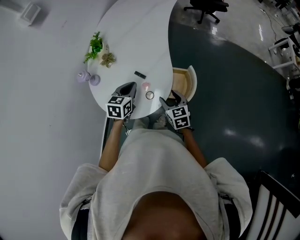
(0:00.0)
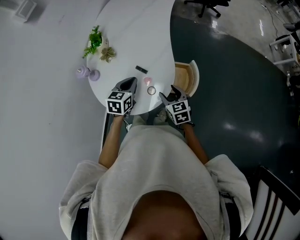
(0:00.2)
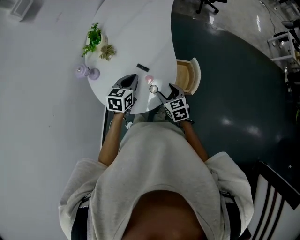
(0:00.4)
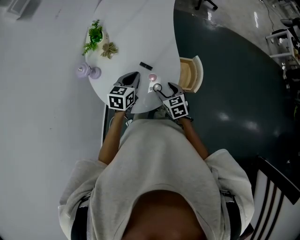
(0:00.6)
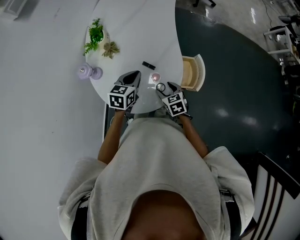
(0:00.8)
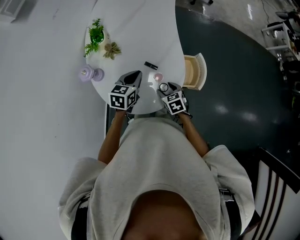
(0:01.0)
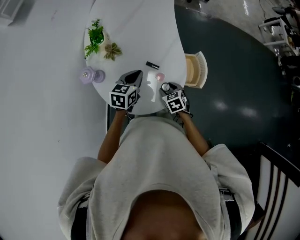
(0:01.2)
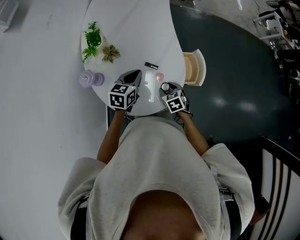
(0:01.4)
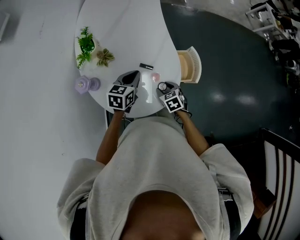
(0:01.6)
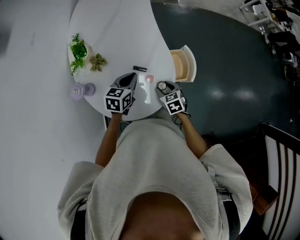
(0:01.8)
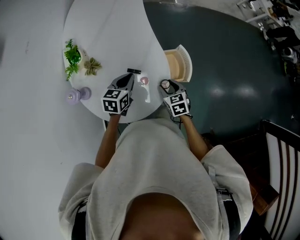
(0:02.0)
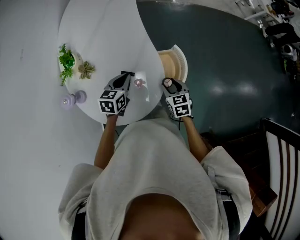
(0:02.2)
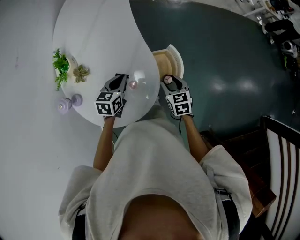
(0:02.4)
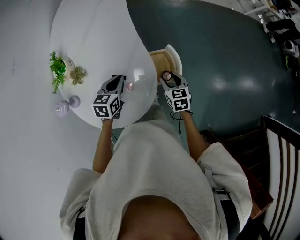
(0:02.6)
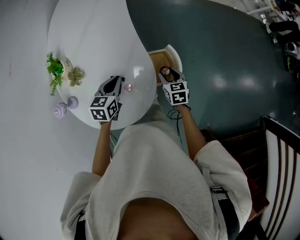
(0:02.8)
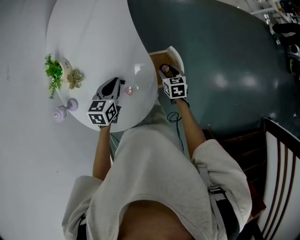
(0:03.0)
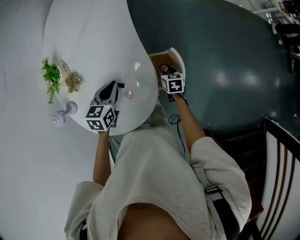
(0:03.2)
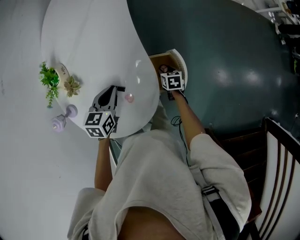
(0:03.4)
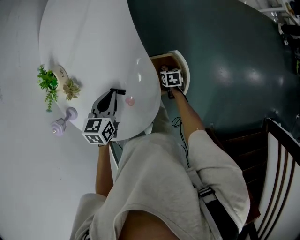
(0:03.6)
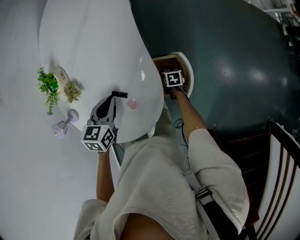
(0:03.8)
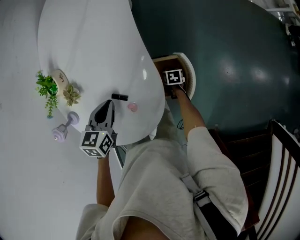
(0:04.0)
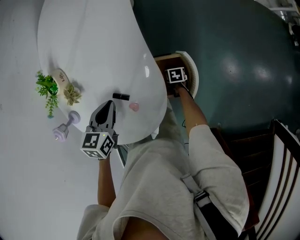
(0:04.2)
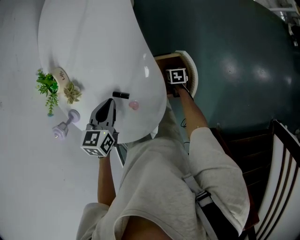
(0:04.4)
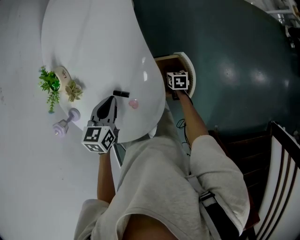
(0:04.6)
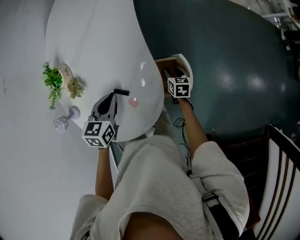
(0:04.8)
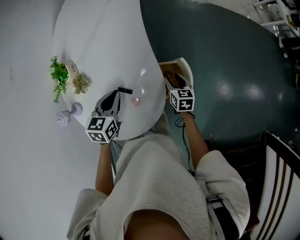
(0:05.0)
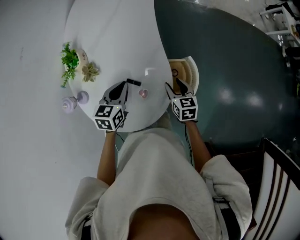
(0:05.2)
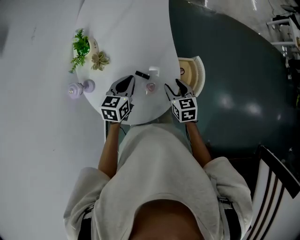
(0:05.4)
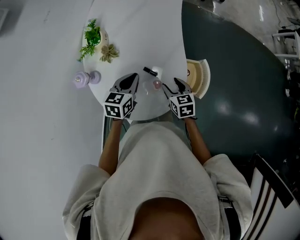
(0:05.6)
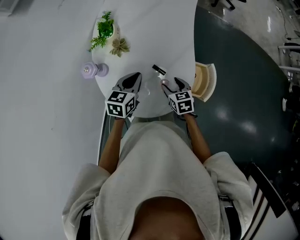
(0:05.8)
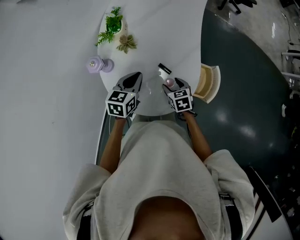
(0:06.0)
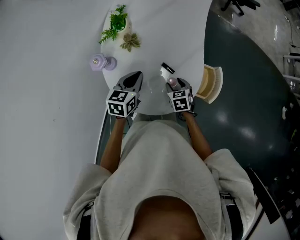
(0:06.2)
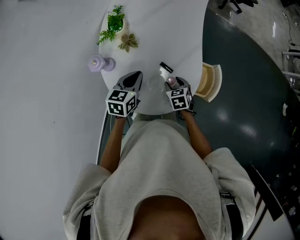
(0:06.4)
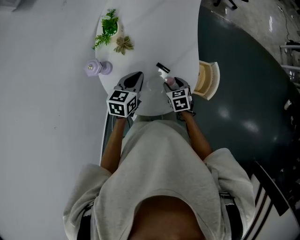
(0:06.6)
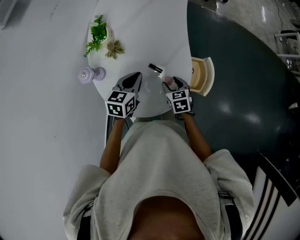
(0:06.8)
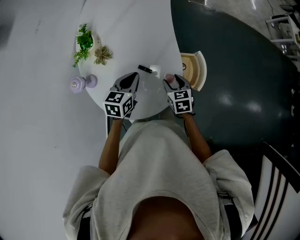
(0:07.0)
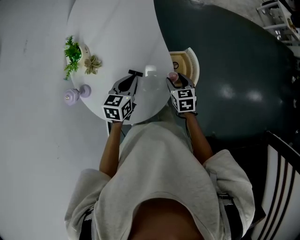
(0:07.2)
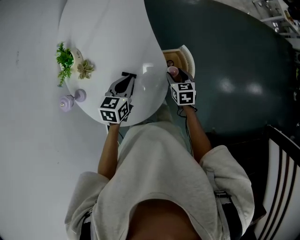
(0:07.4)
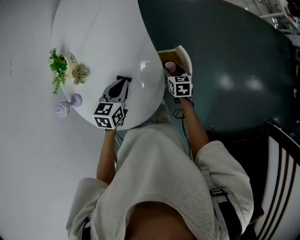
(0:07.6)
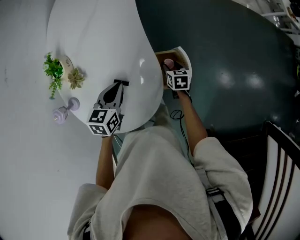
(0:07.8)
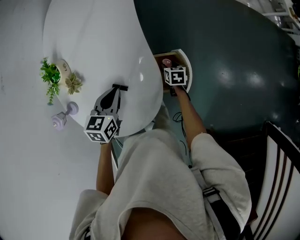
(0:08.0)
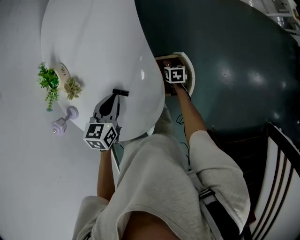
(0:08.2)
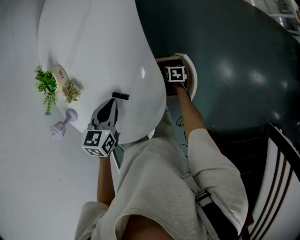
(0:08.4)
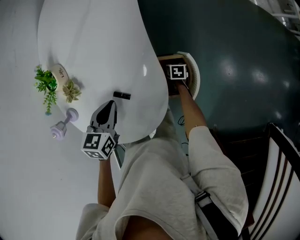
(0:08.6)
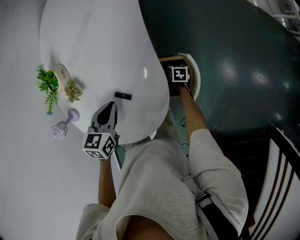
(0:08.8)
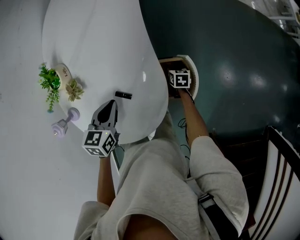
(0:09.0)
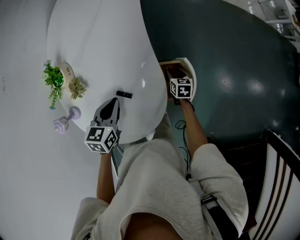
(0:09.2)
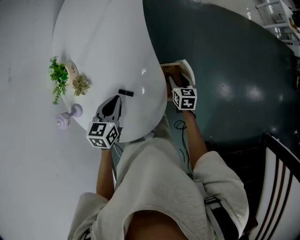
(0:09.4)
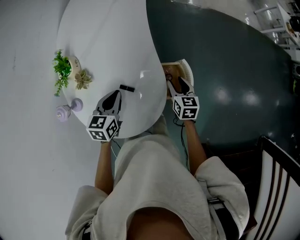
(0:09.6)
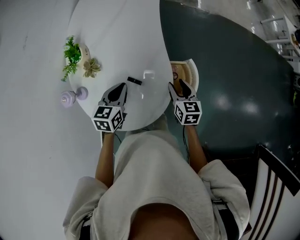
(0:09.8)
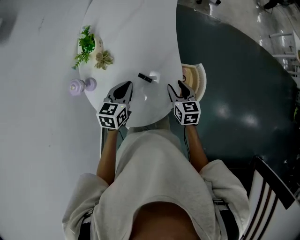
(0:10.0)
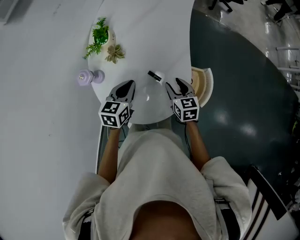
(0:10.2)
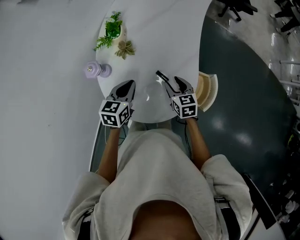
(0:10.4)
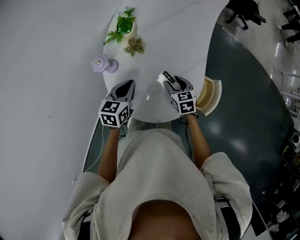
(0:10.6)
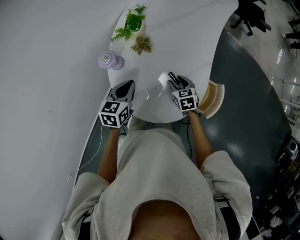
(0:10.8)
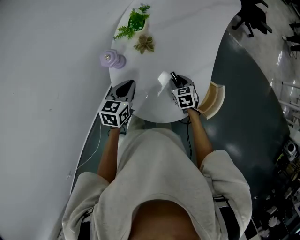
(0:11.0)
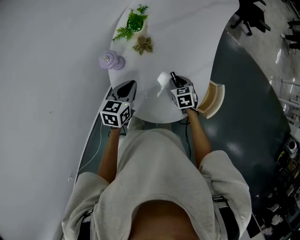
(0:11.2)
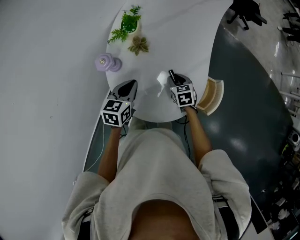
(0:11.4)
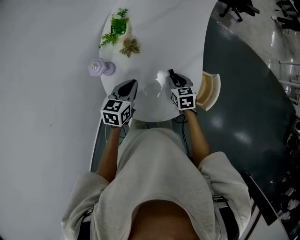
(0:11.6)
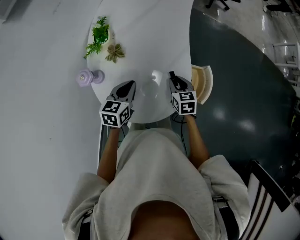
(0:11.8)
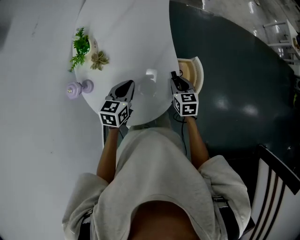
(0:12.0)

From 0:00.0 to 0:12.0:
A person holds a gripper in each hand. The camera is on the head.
From 0:00.0 to 0:01.6: The right gripper shifts approximately 15 cm downward and to the left, and turns by some 30 degrees. The left gripper heads to the left, covering approximately 5 cm, and turns by some 20 degrees.
From 0:01.6 to 0:03.0: The right gripper heads forward and to the right, covering roughly 25 cm, and swivels approximately 20 degrees. The left gripper moves forward and to the right, approximately 10 cm.
From 0:03.0 to 0:04.4: The right gripper travels downward by some 20 cm, and changes its angle by about 20 degrees.
From 0:04.4 to 0:06.0: The right gripper heads upward, to the left and backward, covering about 35 cm, and changes its angle by some 40 degrees. The left gripper shifts roughly 15 cm to the left and backward.
From 0:06.0 to 0:07.6: The left gripper ends up some 15 cm from where it was, while the right gripper moves approximately 20 cm, and turns by roughly 30 degrees.
From 0:07.6 to 0:09.0: The right gripper heads downward and forward, covering some 15 cm.
From 0:09.0 to 0:10.4: The left gripper changes place by some 15 cm; the right gripper moves upward, approximately 25 cm, and swivels approximately 40 degrees.
From 0:10.4 to 0:12.0: The right gripper ends up about 10 cm from where it was, and turns by some 20 degrees; the left gripper moves about 10 cm.

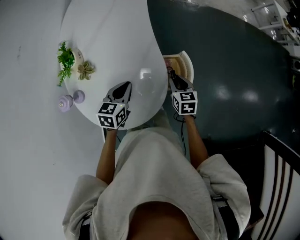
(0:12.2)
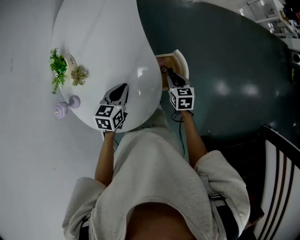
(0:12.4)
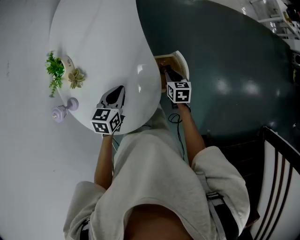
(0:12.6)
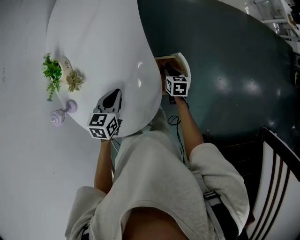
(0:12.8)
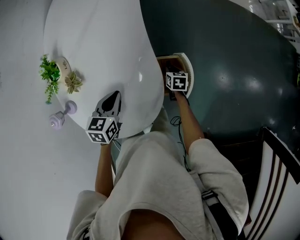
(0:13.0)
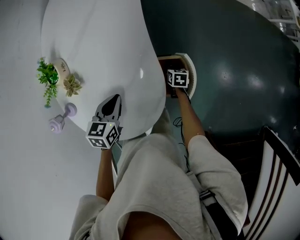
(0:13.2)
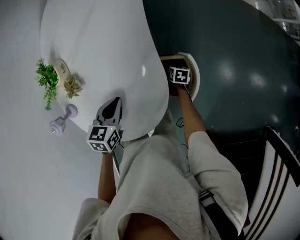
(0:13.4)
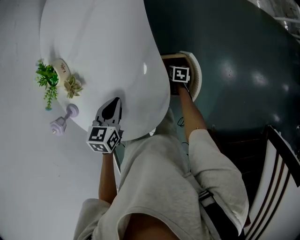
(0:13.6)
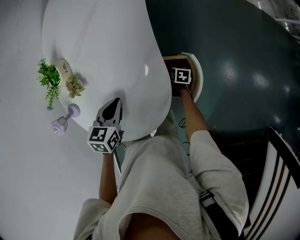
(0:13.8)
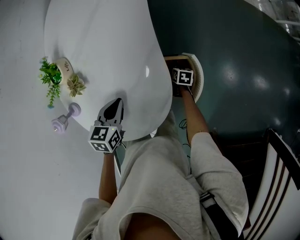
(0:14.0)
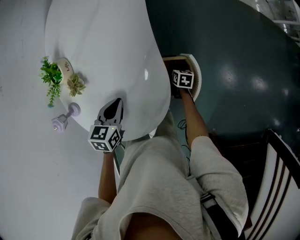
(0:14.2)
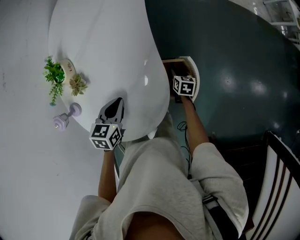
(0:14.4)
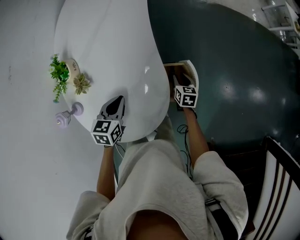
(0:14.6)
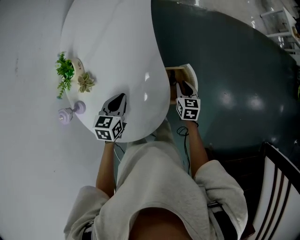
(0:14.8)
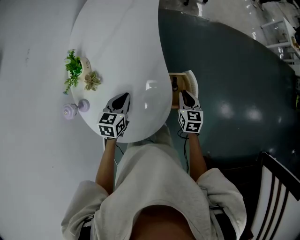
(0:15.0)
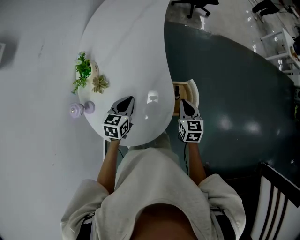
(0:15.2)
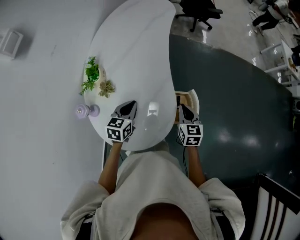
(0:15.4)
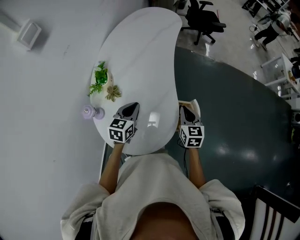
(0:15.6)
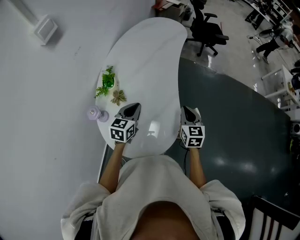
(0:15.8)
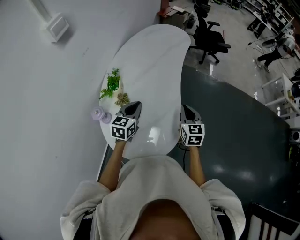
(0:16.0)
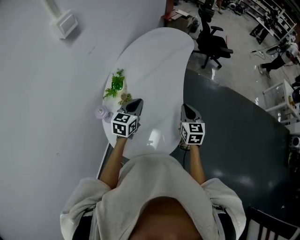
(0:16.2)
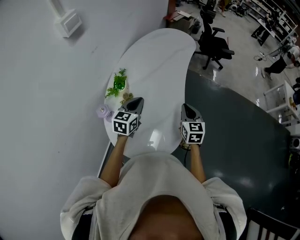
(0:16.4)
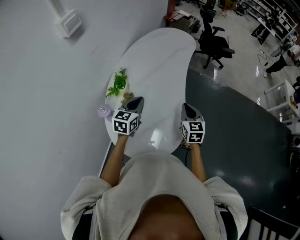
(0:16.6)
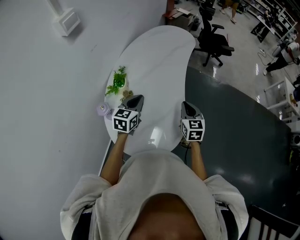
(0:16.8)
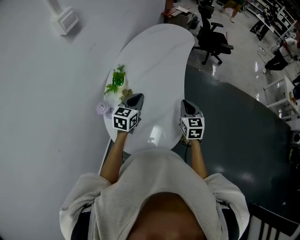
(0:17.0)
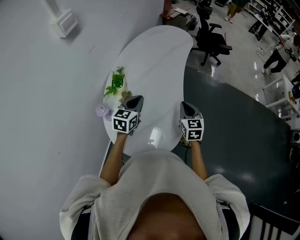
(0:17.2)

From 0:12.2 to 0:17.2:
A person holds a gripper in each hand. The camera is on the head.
From 0:12.2 to 0:13.8: The left gripper changes place by roughly 5 cm, while the right gripper travels downward by some 25 cm, and rotates about 30 degrees.
From 0:13.8 to 0:15.6: The left gripper goes approximately 10 cm upward, and rotates some 20 degrees, while the right gripper heads upward, covering about 40 cm, tilts its fingers roughly 40 degrees upward, and closes.
From 0:15.6 to 0:17.2: The left gripper is displaced upward by about 5 cm; the right gripper shifts roughly 10 cm to the left and upward.

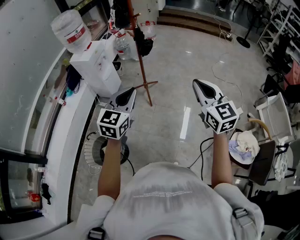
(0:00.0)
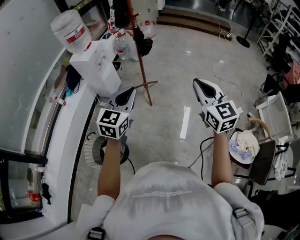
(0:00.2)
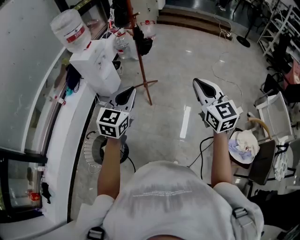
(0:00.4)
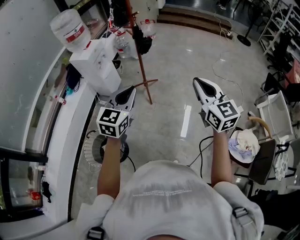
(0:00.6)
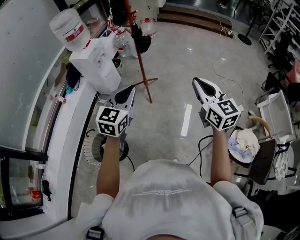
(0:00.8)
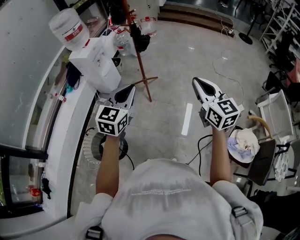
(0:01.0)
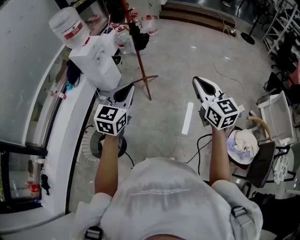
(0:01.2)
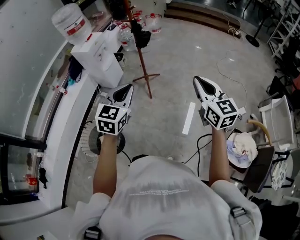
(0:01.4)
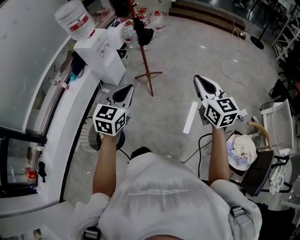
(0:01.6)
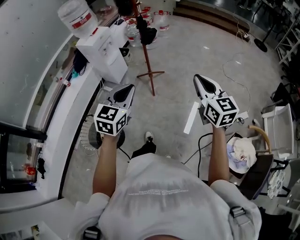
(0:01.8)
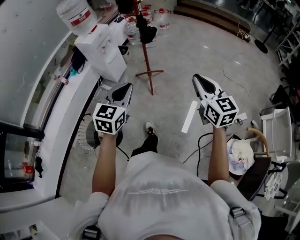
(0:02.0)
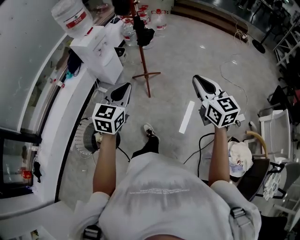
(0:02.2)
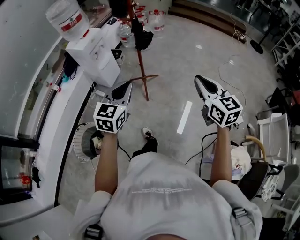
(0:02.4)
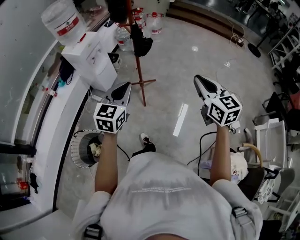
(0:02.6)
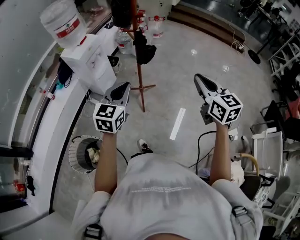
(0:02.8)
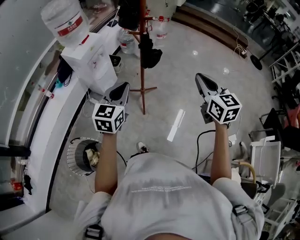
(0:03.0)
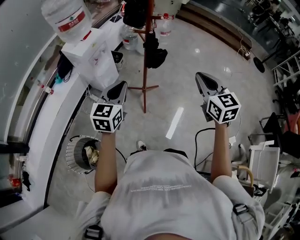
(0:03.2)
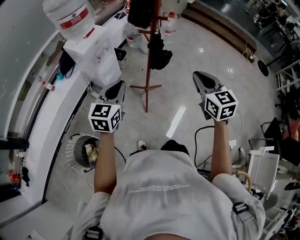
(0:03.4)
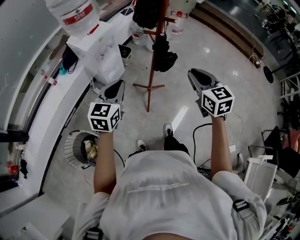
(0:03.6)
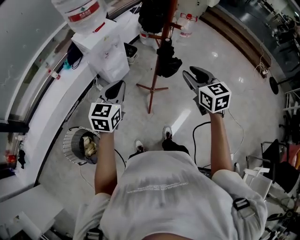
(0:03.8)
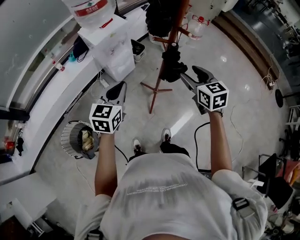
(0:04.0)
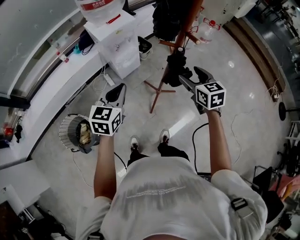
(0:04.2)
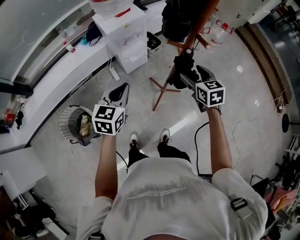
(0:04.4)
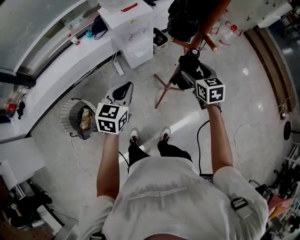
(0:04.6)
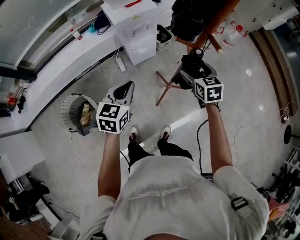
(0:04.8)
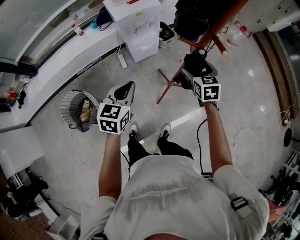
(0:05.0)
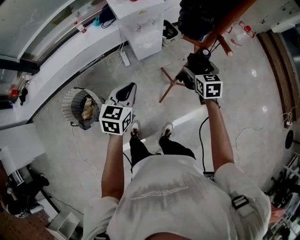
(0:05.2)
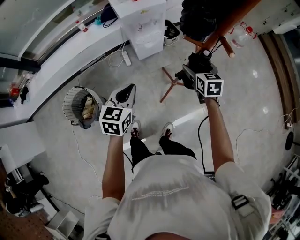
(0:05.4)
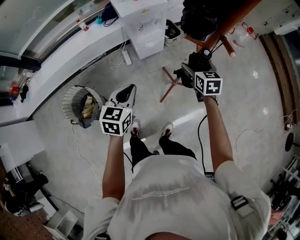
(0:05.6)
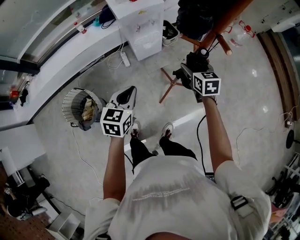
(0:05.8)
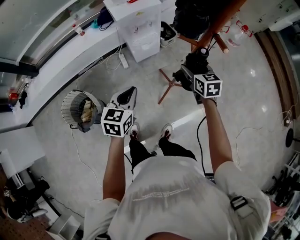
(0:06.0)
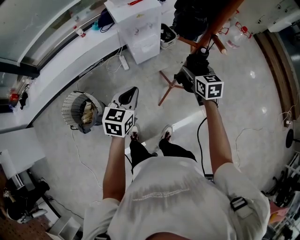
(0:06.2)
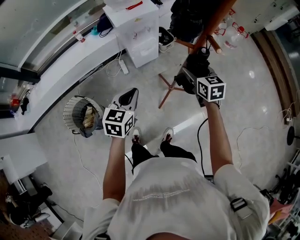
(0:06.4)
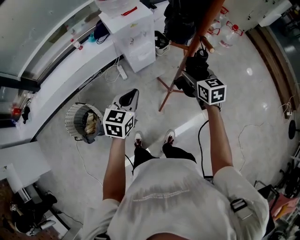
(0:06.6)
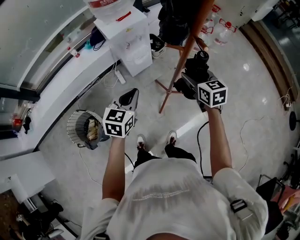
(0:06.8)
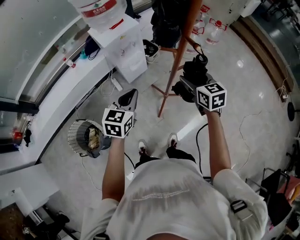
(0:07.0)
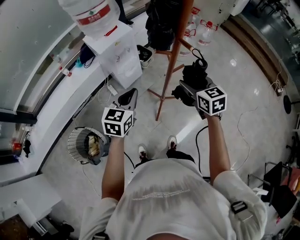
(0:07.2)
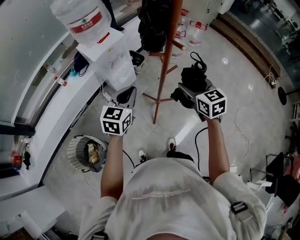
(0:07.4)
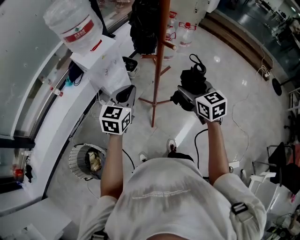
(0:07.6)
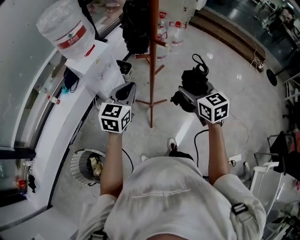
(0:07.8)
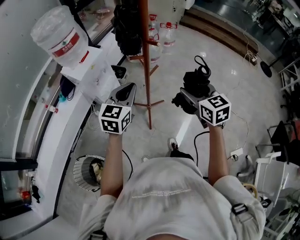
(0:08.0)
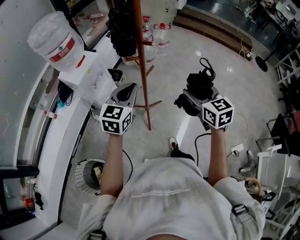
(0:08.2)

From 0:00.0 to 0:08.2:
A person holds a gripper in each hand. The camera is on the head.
From 0:00.0 to 0:01.6: Both grippers move to the right, approximately 10 cm.
From 0:01.6 to 0:03.2: Both grippers move forward, about 30 cm.
From 0:03.2 to 0:05.0: The right gripper ends up roughly 40 cm from where it was, turns by approximately 30 degrees, and opens up. Meanwhile the left gripper moves downward, some 10 cm, and turns by some 40 degrees.
From 0:05.0 to 0:06.6: There are only small adjustments of the grippers.
From 0:06.6 to 0:08.2: The right gripper shifts by some 25 cm, and rotates roughly 30 degrees; the left gripper is displaced upward by about 15 cm, and turns by approximately 40 degrees.
